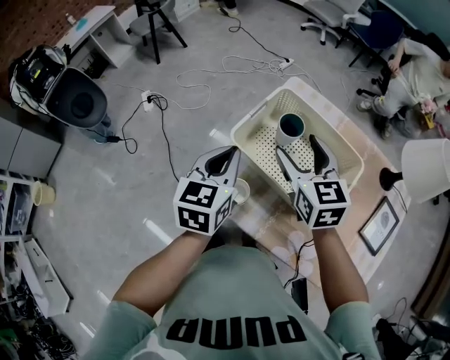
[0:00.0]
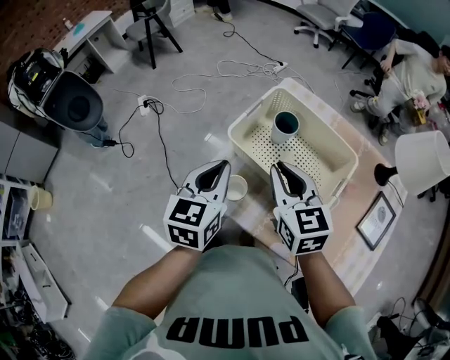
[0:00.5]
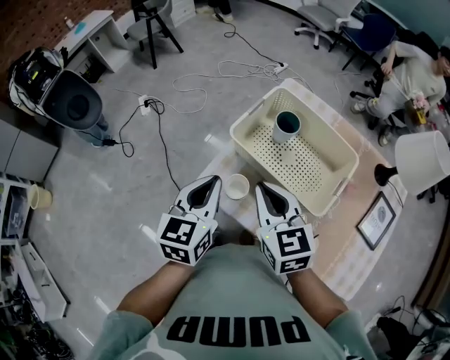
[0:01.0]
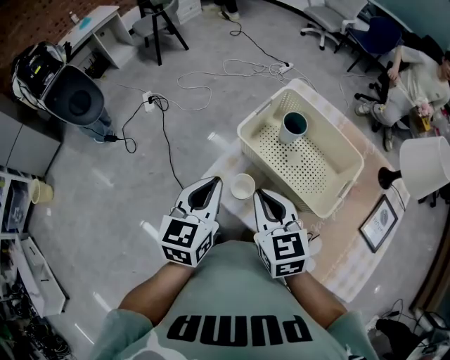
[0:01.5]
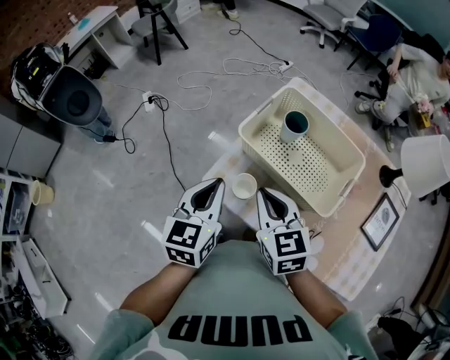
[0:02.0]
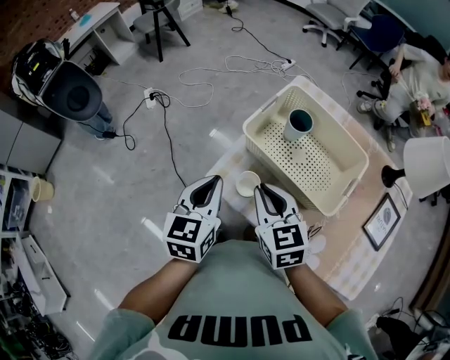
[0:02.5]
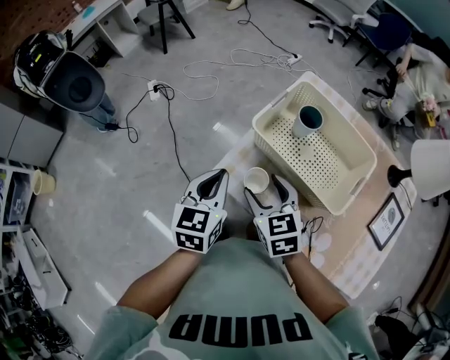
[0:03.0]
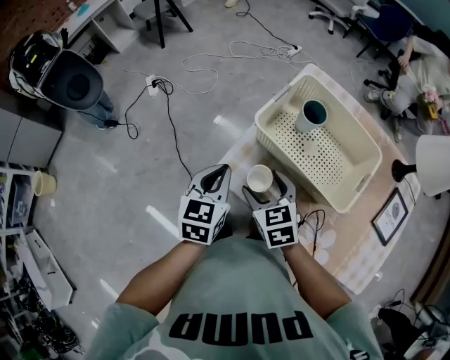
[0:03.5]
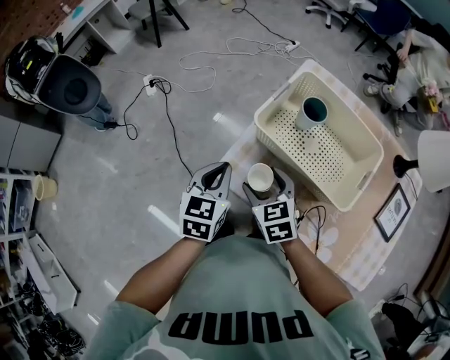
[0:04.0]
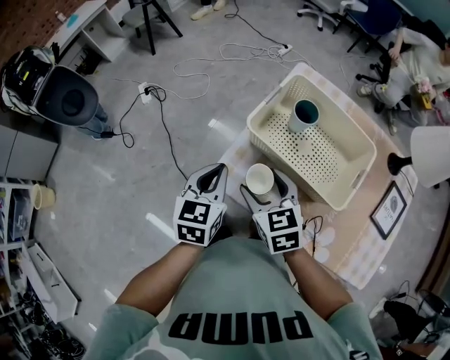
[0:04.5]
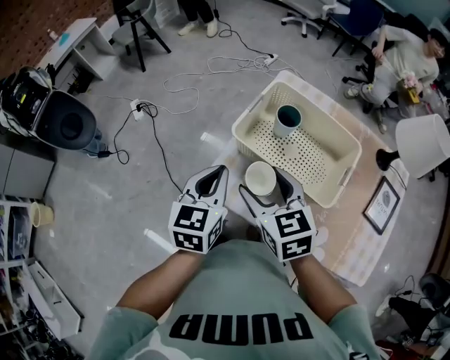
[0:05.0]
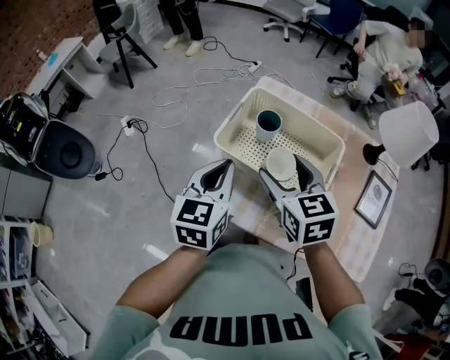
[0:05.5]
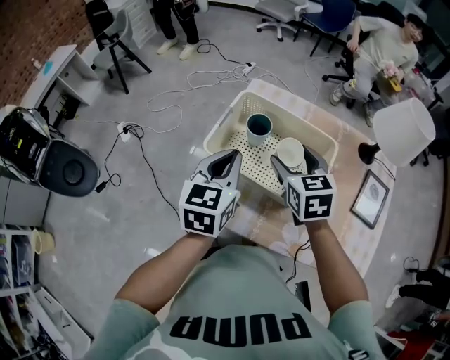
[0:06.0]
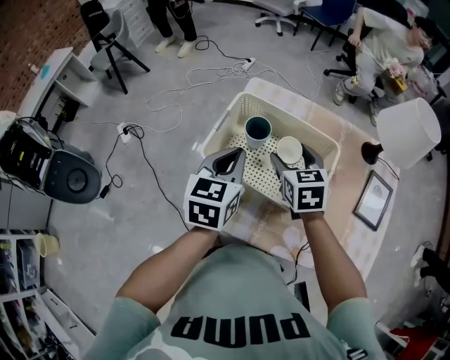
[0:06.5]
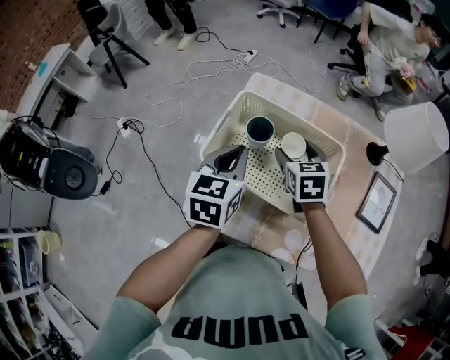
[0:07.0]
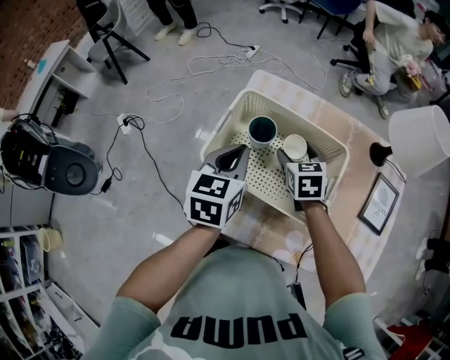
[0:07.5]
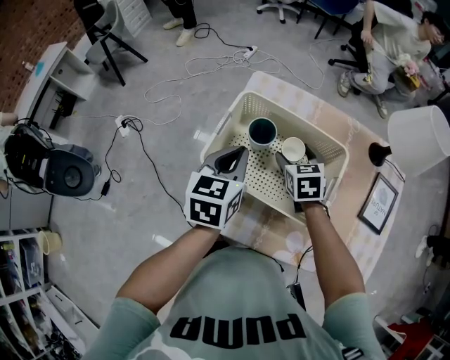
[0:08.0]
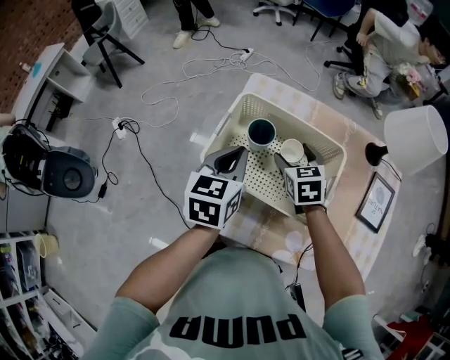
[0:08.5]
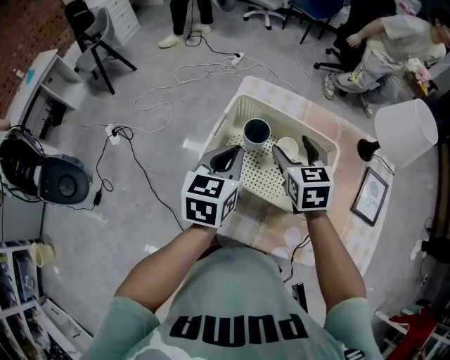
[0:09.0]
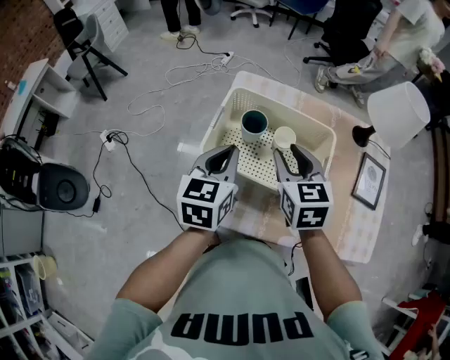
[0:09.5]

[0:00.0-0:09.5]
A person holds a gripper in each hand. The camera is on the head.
0:00.0 to 0:02.0: The right gripper goes roughly 15 cm backward and to the left, and closes its fingers, while the left gripper heads backward, covering about 10 cm.
0:02.0 to 0:04.0: Both grippers move downward, roughly 10 cm. The right gripper opens.
0:04.0 to 0:05.5: The two grippers go approximately 20 cm upward and to the right.
0:05.5 to 0:07.5: The left gripper is displaced forward by about 10 cm. Meanwhile the right gripper goes about 20 cm downward, forward and to the right.
0:07.5 to 0:09.5: The left gripper moves approximately 5 cm; the right gripper goes approximately 15 cm upward and backward, and closes its fingers.

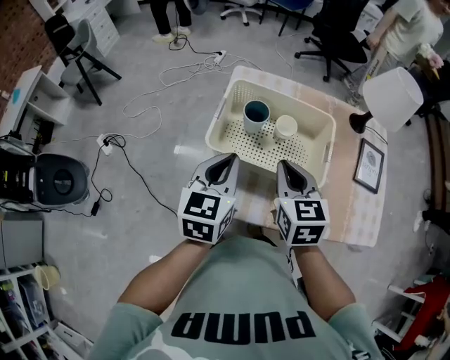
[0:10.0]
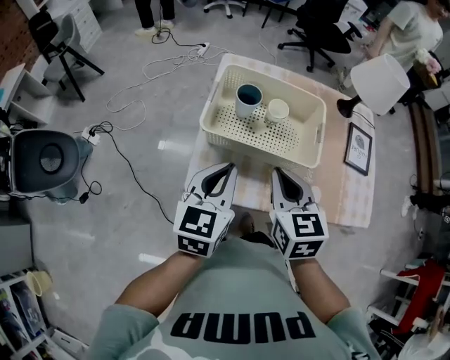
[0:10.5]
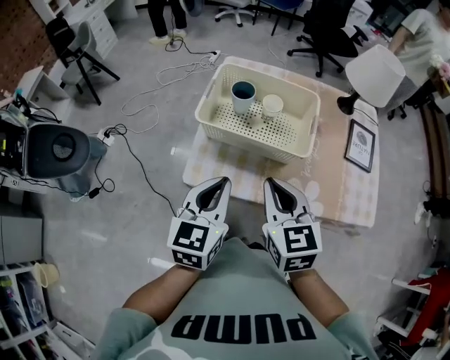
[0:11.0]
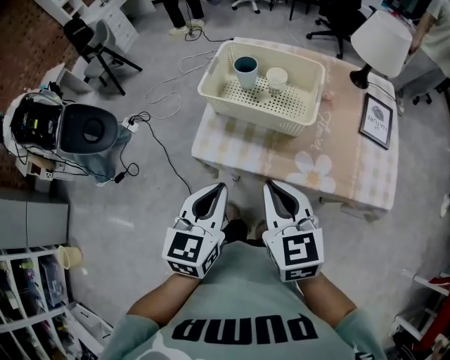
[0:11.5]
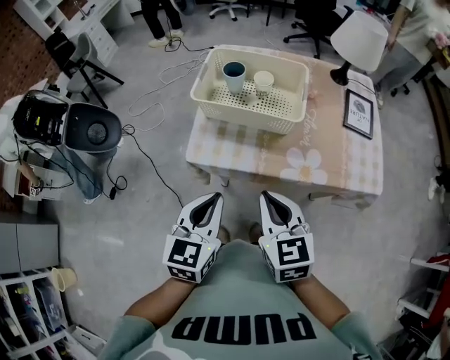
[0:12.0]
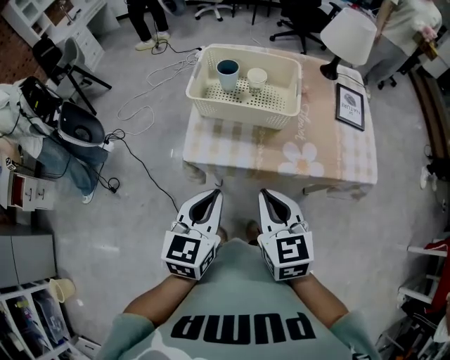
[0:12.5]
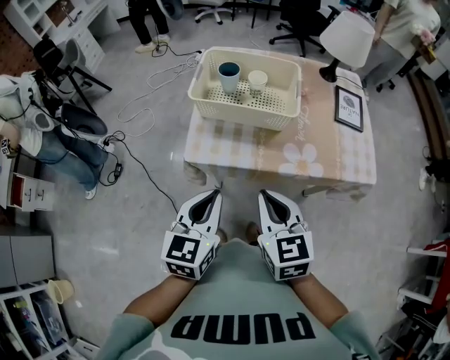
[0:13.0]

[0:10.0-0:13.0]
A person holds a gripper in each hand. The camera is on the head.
0:10.0 to 0:11.5: The grippers both shift backward by some 20 cm.
0:11.5 to 0:13.0: The left gripper moves approximately 5 cm. The right gripper travels backward by approximately 5 cm.

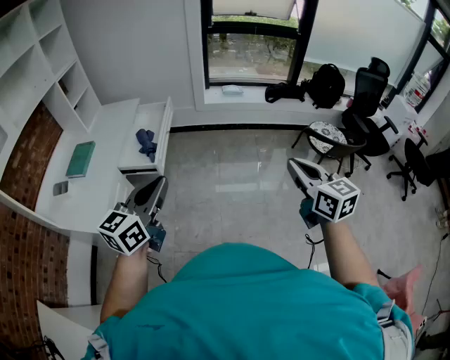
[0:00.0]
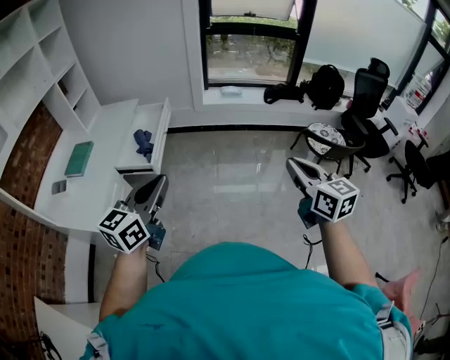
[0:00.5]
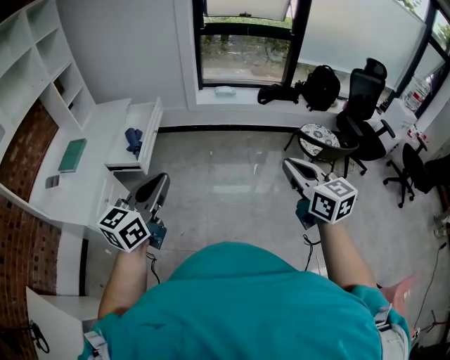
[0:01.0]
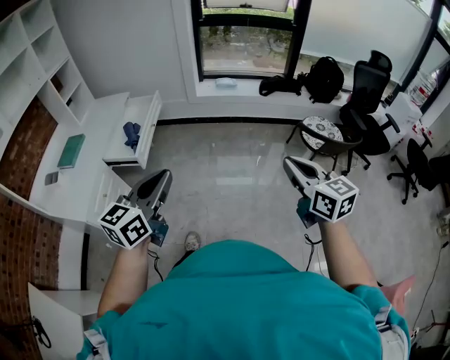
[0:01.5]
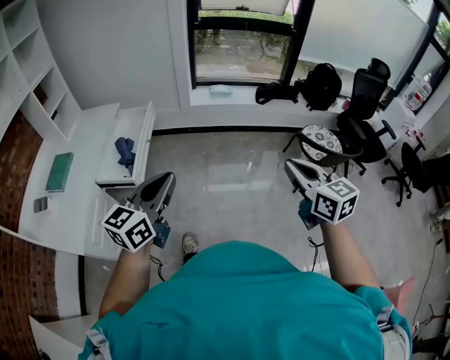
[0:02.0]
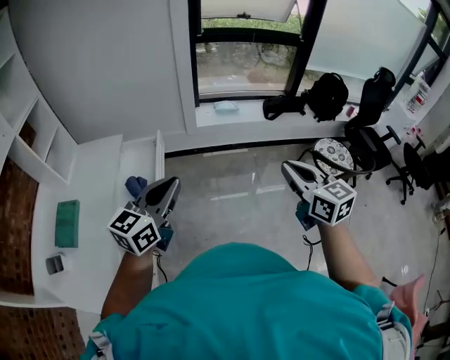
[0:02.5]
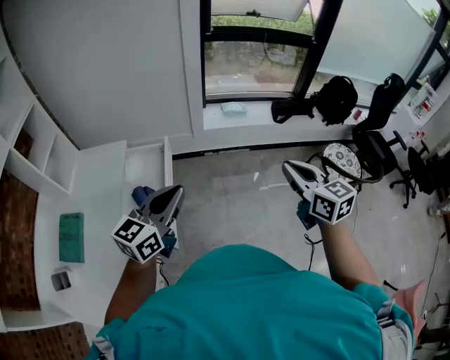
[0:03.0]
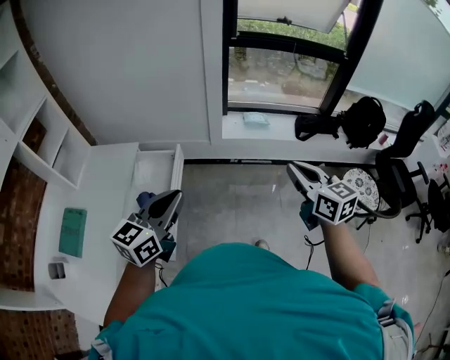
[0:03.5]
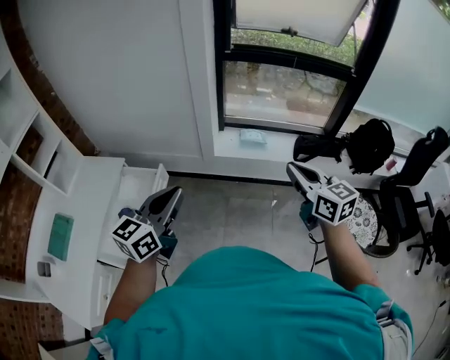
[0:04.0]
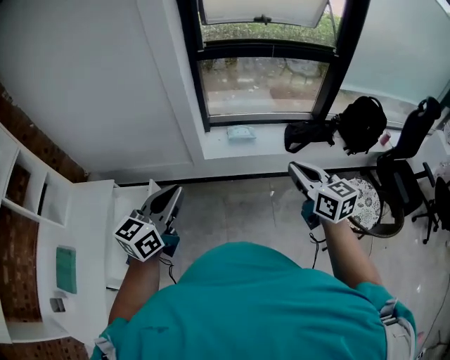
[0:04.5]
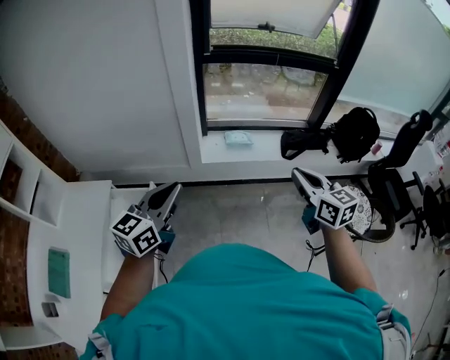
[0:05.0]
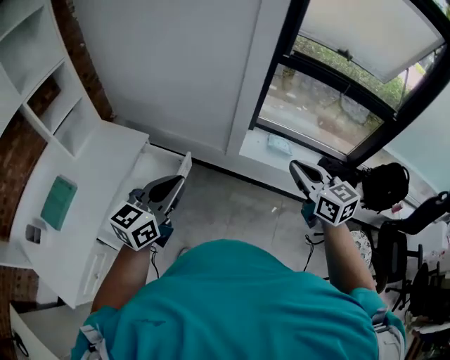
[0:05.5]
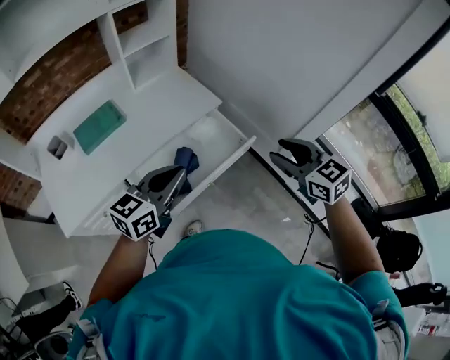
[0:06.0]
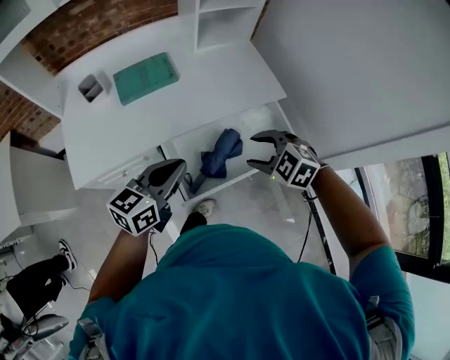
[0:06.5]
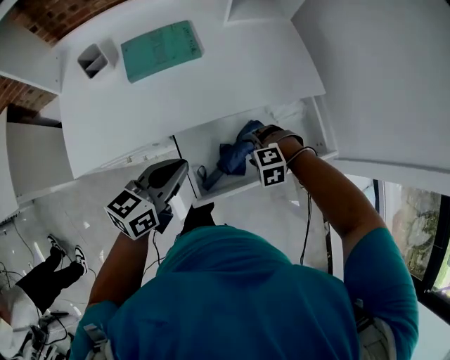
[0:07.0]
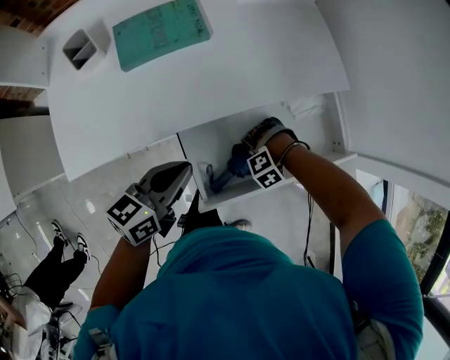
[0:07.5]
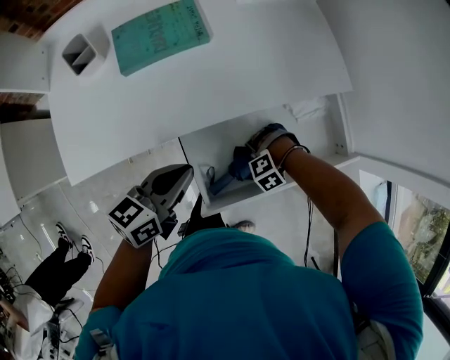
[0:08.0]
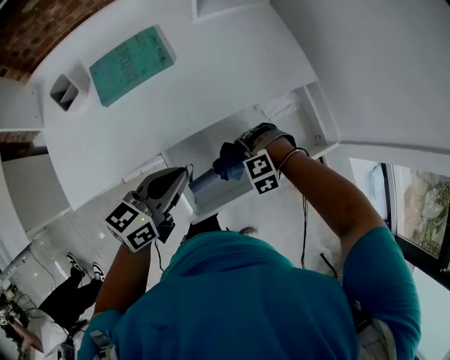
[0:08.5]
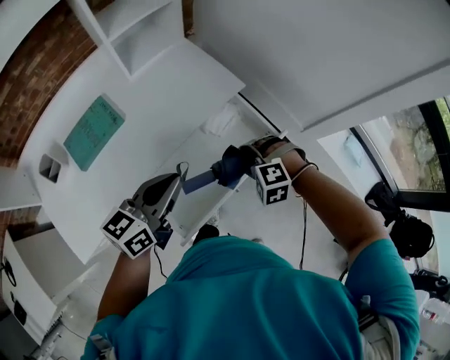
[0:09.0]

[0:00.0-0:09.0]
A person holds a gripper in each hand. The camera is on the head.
0:00.0 to 0:02.0: The grippers both shift forward and to the right by roughly 15 cm.
0:02.0 to 0:04.5: The pair of grippers is taken forward, some 60 cm.
0:04.5 to 0:07.0: Both grippers are carried roughly 60 cm. The left gripper swivels some 70 degrees. The right gripper tilts its fingers about 70 degrees downward, and opens.
0:07.0 to 0:09.0: The left gripper shifts by about 15 cm, and changes its angle by some 20 degrees, while the right gripper moves some 15 cm, and changes its angle by approximately 30 degrees.

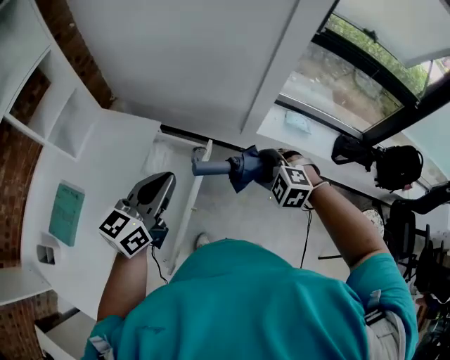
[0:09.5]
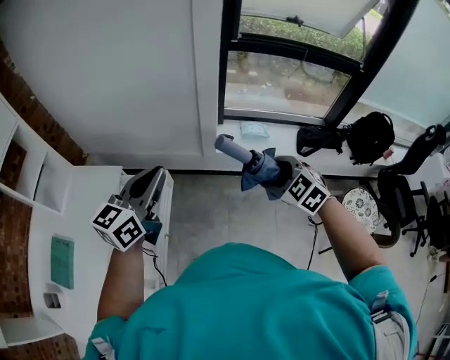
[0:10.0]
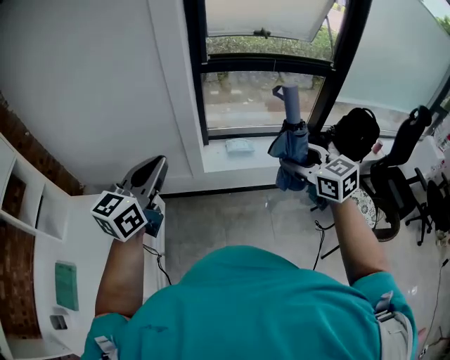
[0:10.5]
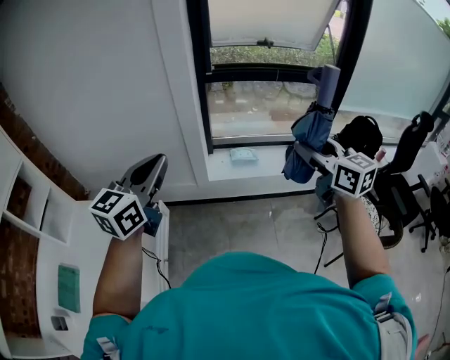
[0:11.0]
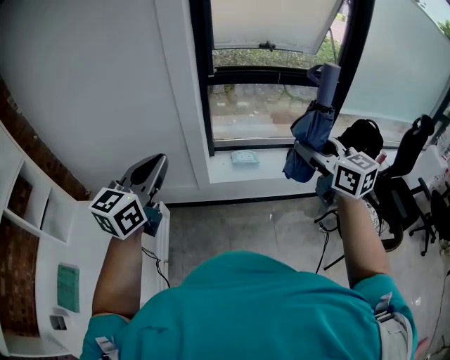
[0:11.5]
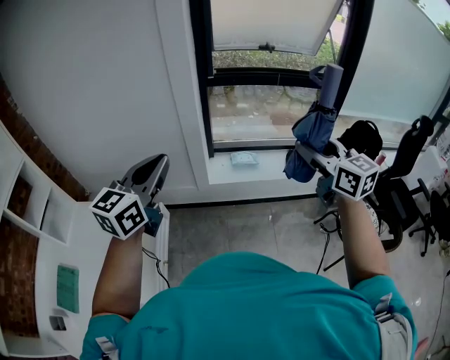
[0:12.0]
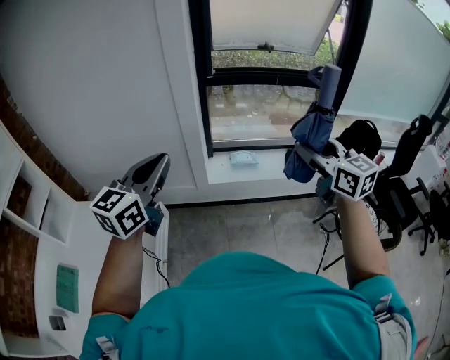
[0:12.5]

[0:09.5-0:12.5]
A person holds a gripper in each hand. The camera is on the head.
0:09.5 to 0:11.0: The left gripper moves to the right and upward, about 30 cm, and changes its angle by approximately 20 degrees. Meanwhile the right gripper goes about 50 cm to the right and upward, and points its fingers roughly 50 degrees further upward.
0:11.0 to 0:12.5: The grippers move only a little.

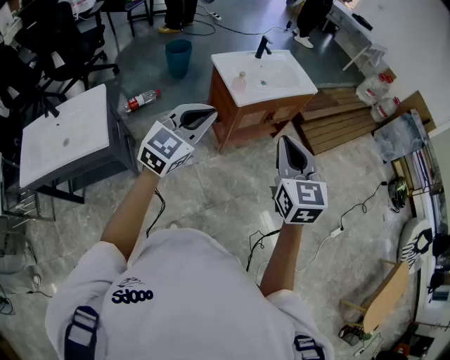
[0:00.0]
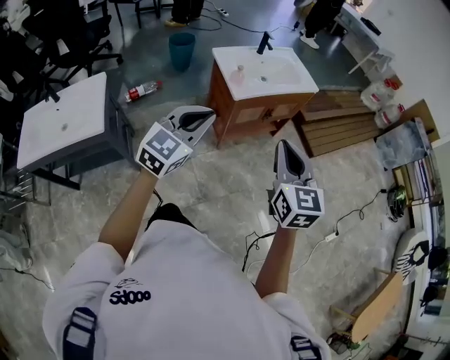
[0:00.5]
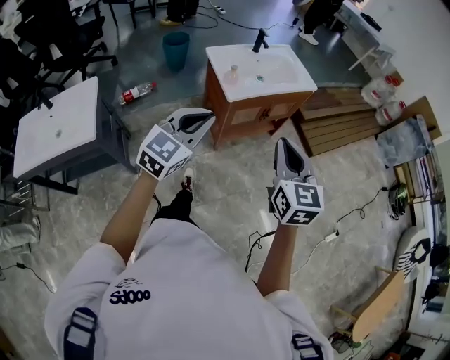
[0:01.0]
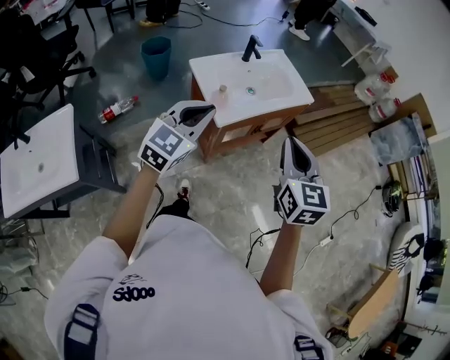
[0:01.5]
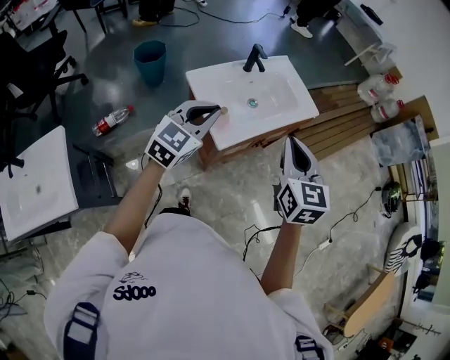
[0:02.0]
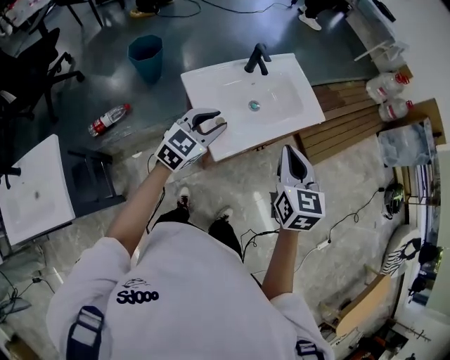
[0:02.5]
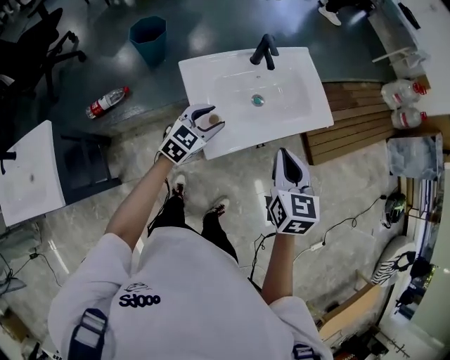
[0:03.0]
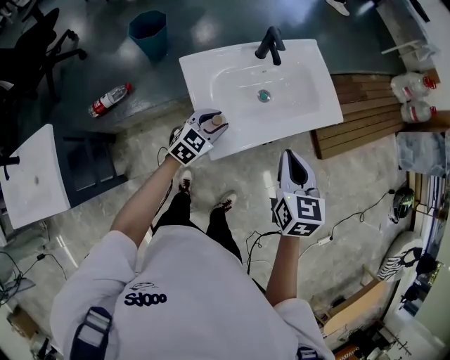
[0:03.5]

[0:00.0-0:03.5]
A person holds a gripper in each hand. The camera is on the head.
0:00.0 to 0:02.0: Both grippers move forward, some 30 cm.
0:02.0 to 0:03.5: The right gripper moves downward and forward, some 15 cm. Meanwhile the left gripper shifts some 25 cm downward and forward, and opens up.
